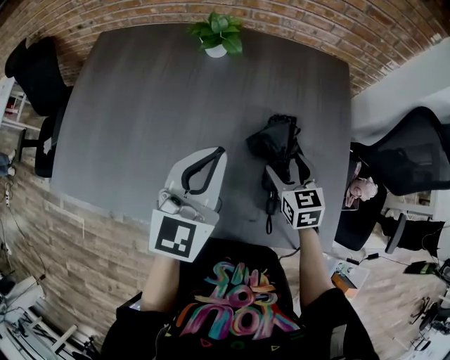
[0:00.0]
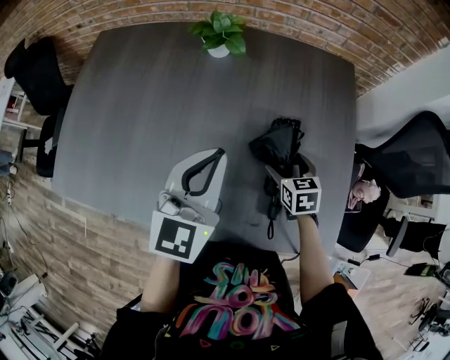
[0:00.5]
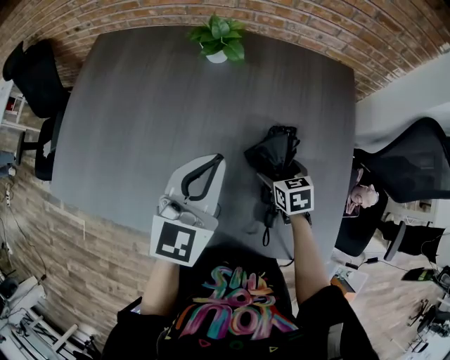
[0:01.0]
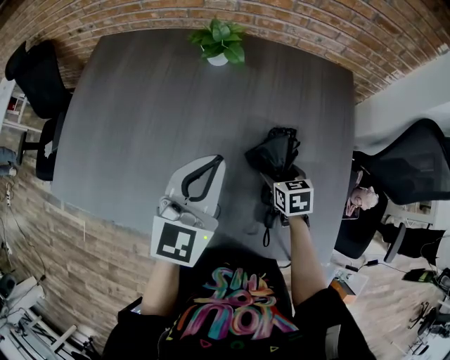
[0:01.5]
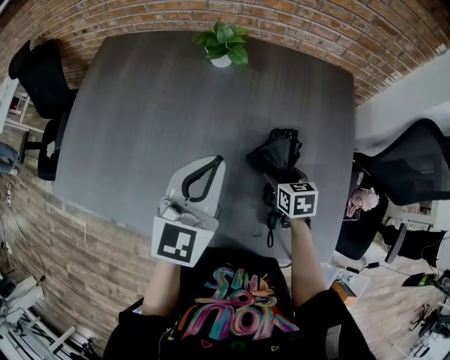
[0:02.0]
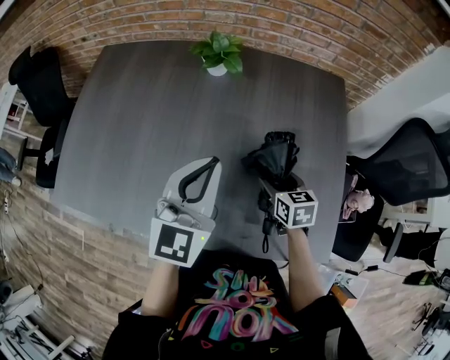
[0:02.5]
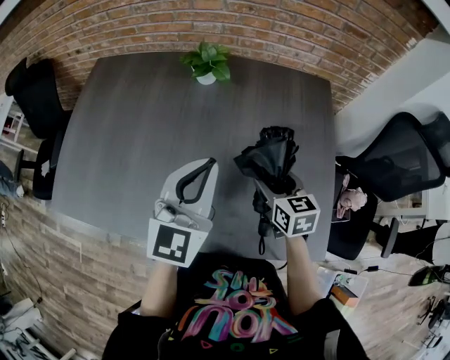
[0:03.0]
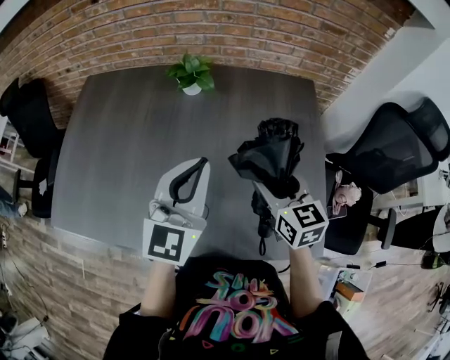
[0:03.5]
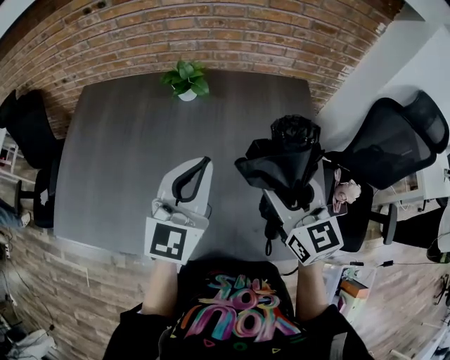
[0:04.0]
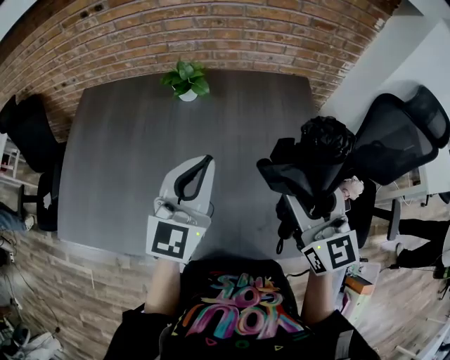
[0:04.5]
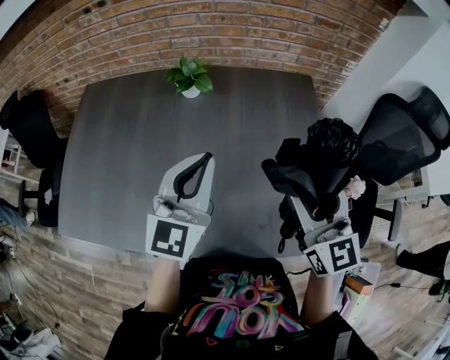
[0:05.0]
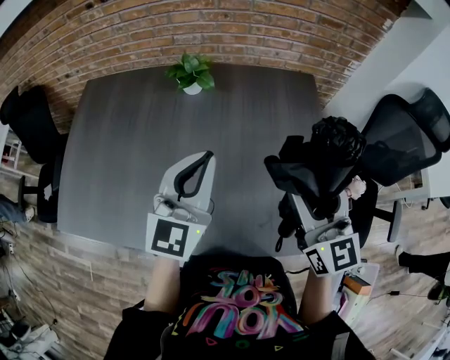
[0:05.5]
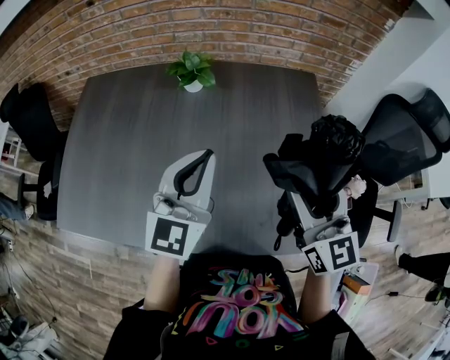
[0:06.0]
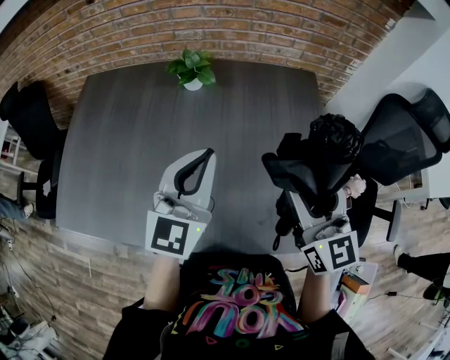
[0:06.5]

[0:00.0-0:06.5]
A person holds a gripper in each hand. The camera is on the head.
0:00.0 to 0:02.0: The right gripper goes some 5 cm downward.
0:02.0 to 0:04.5: The left gripper is displaced upward by roughly 5 cm. Meanwhile the right gripper heads upward, covering some 30 cm, and tilts its fingers roughly 50 degrees upward.
0:04.5 to 0:06.5: Both grippers stay put.

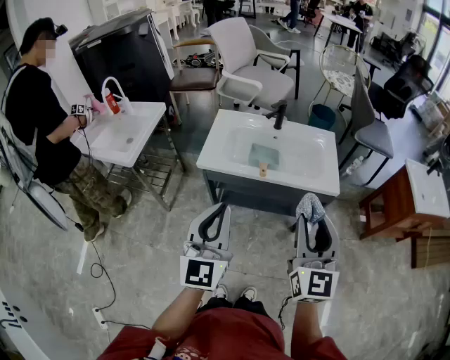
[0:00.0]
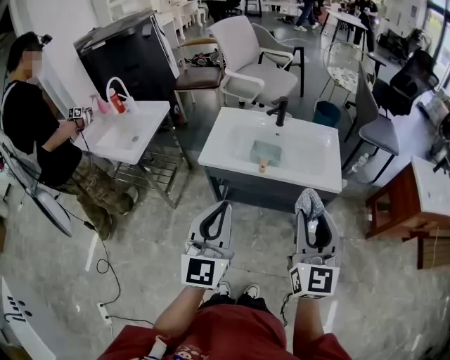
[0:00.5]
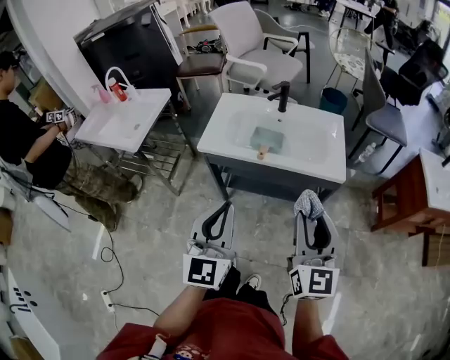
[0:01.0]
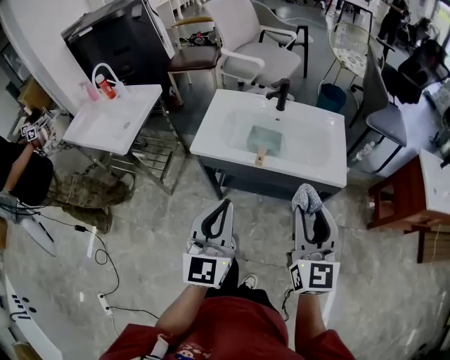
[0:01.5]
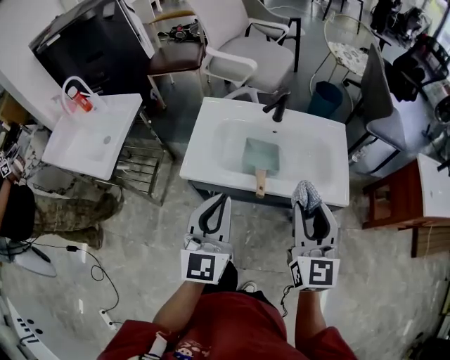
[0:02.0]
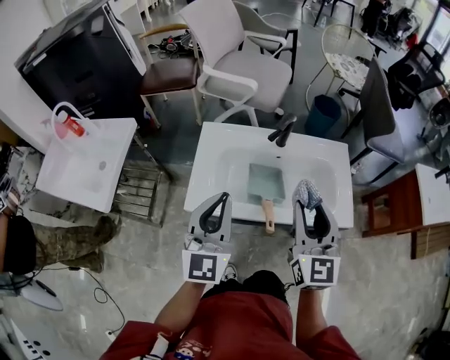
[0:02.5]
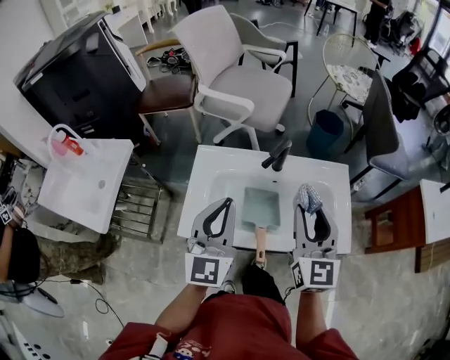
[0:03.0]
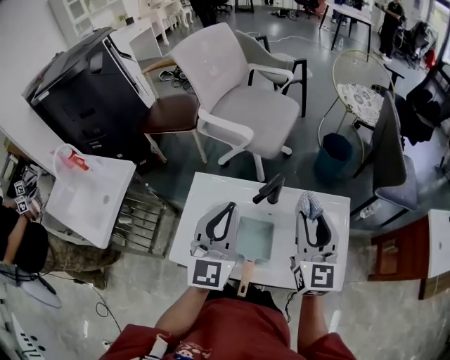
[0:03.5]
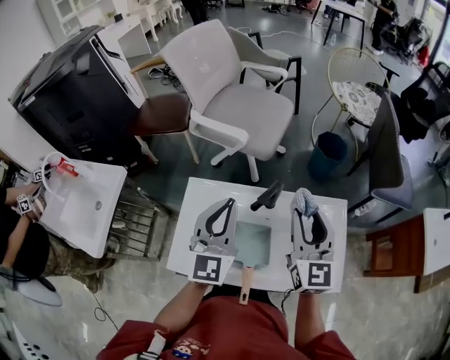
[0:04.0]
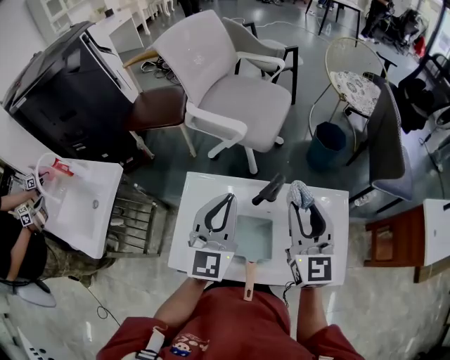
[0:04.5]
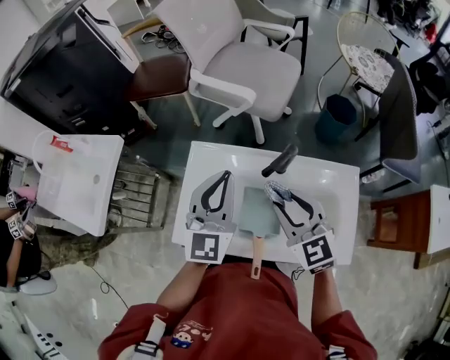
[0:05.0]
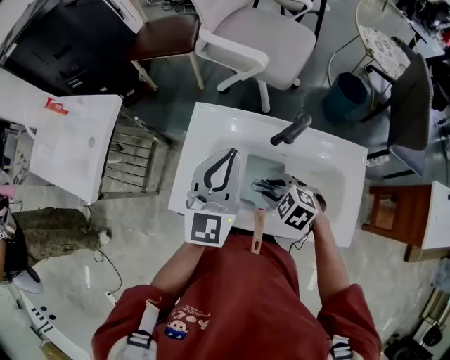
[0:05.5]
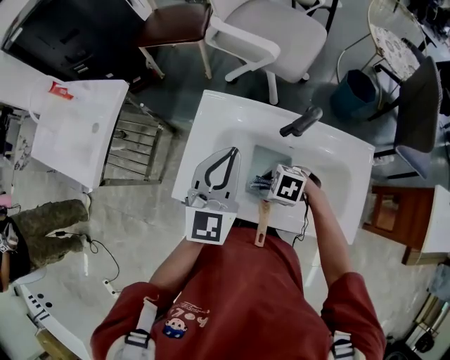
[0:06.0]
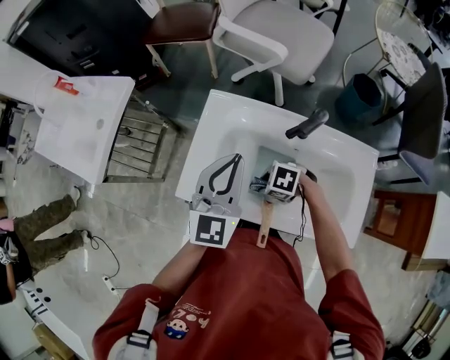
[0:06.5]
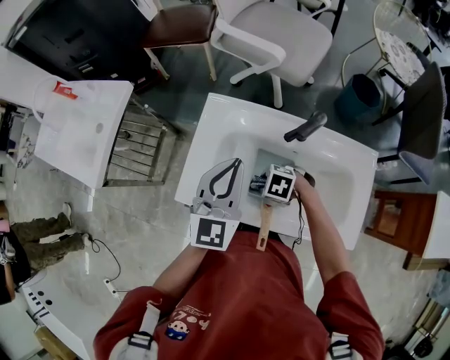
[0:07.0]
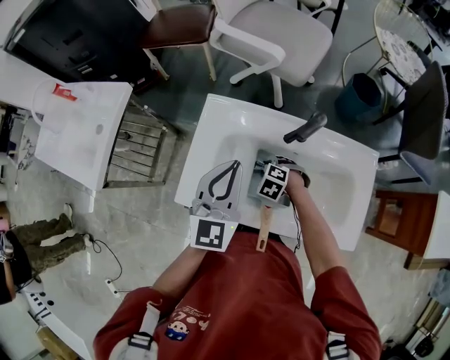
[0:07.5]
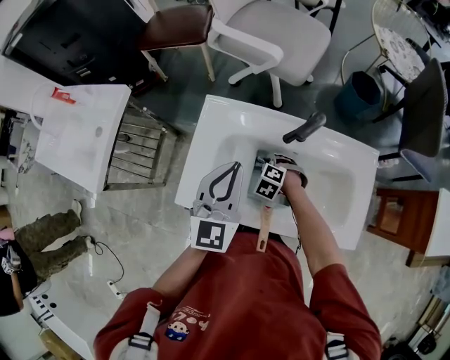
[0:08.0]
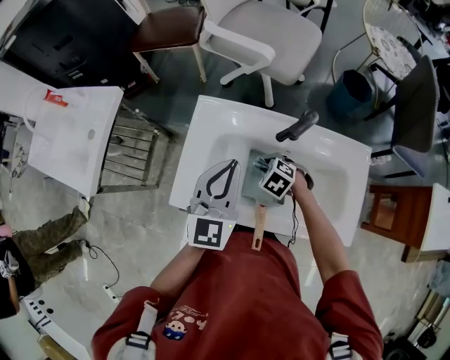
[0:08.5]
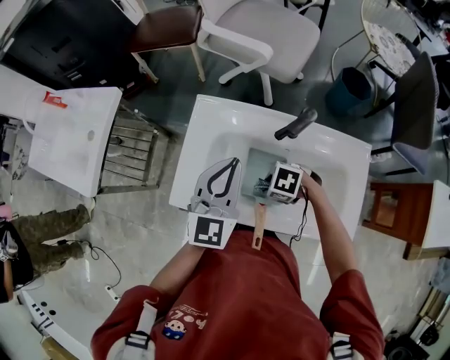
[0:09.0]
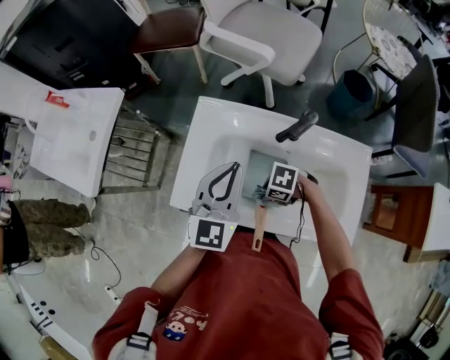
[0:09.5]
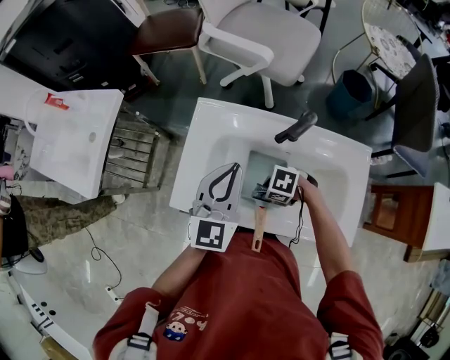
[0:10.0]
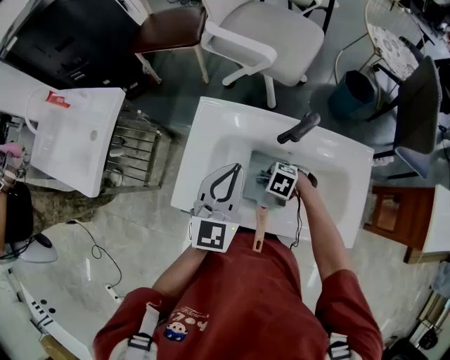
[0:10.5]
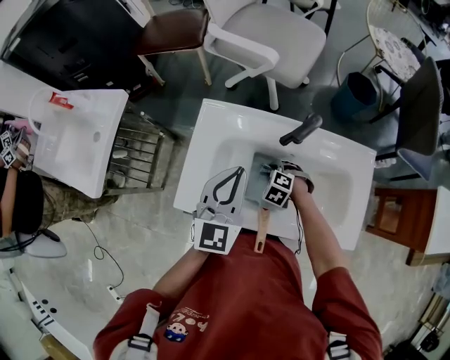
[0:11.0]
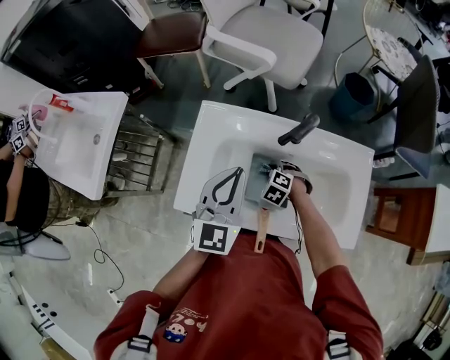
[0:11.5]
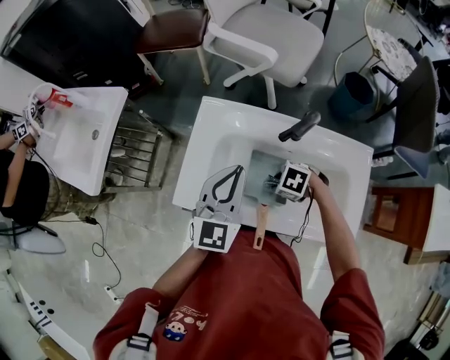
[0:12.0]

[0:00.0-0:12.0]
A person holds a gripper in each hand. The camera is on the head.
0:00.0 to 0:02.0: The two grippers go approximately 20 cm forward.
0:02.0 to 0:04.0: The two grippers go about 35 cm forward.
0:04.0 to 0:06.0: The right gripper moves downward, some 30 cm, and tips its fingers downward by some 70 degrees; the left gripper is displaced downward by some 10 cm.
0:06.0 to 0:08.0: The right gripper goes some 10 cm downward, and swivels approximately 30 degrees.
0:08.0 to 0:10.0: The right gripper ends up about 10 cm from where it was, and changes its angle by roughly 40 degrees.

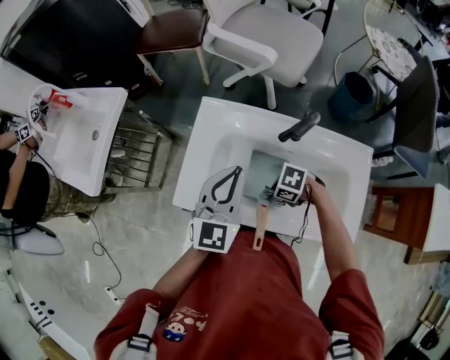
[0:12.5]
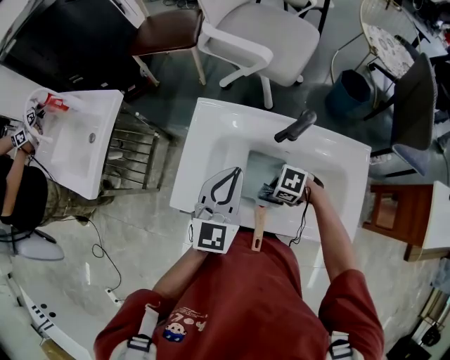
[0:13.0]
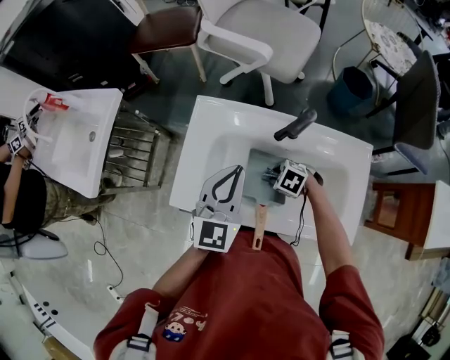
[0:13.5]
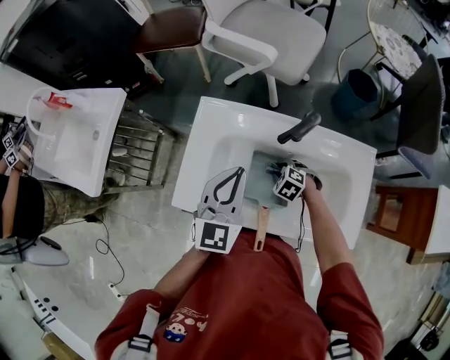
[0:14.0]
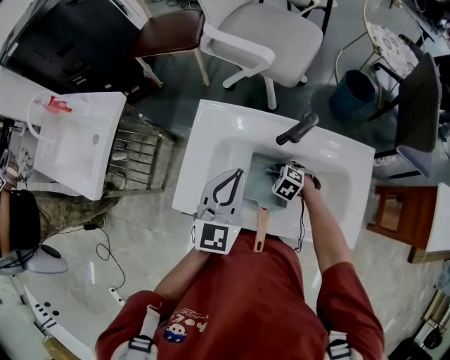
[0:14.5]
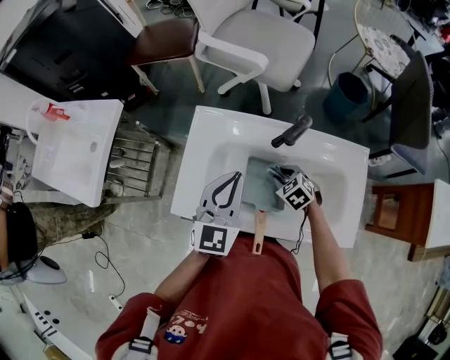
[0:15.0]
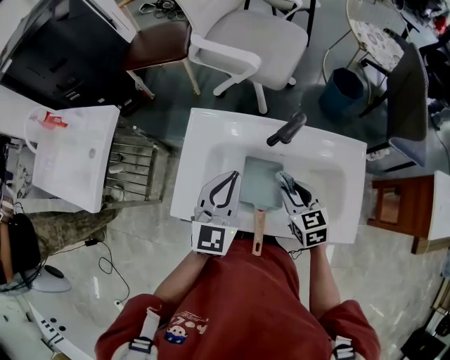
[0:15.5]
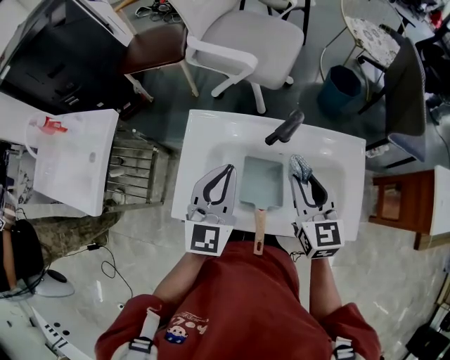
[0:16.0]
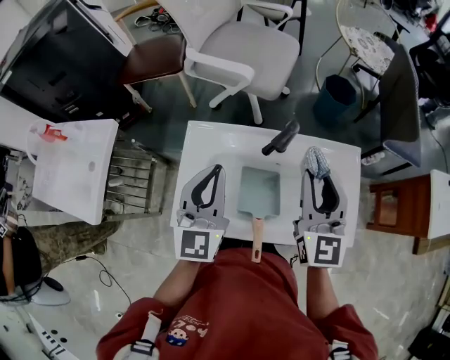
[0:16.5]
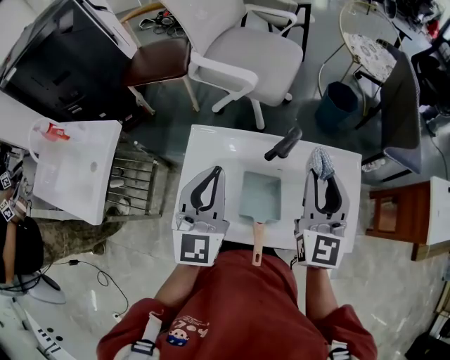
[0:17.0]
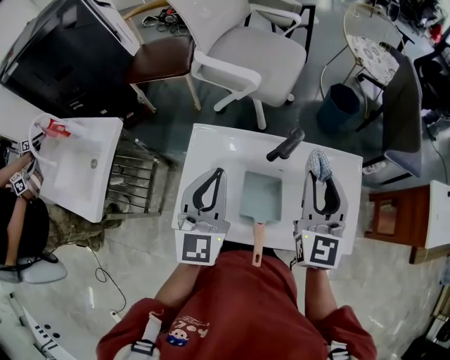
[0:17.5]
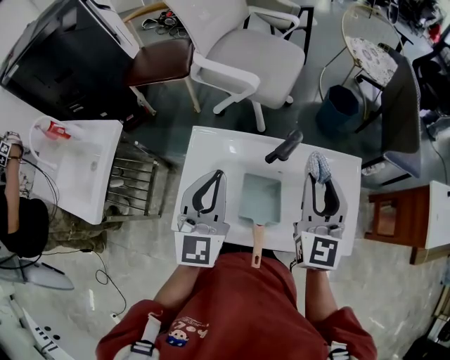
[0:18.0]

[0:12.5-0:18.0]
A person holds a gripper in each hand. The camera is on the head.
0:12.5 to 0:14.5: The right gripper moves approximately 10 cm, and rotates approximately 40 degrees.
0:14.5 to 0:16.0: The right gripper moves upward, roughly 30 cm, and tilts its fingers roughly 50 degrees upward.
0:16.0 to 0:18.0: The left gripper moves about 5 cm. Meanwhile the right gripper heads upward, covering about 10 cm, and turns by approximately 20 degrees.

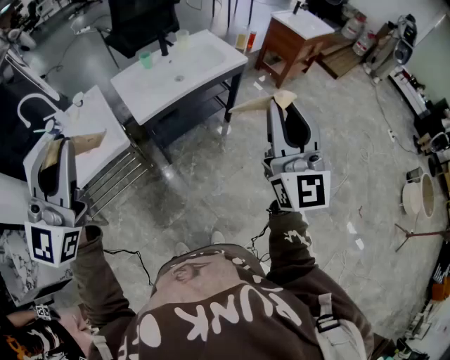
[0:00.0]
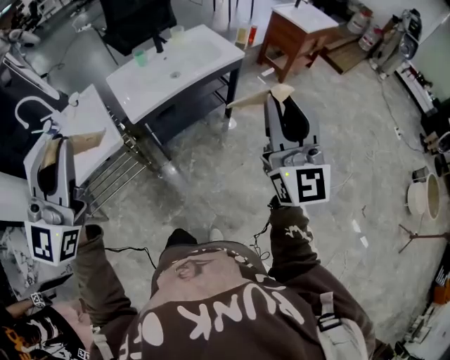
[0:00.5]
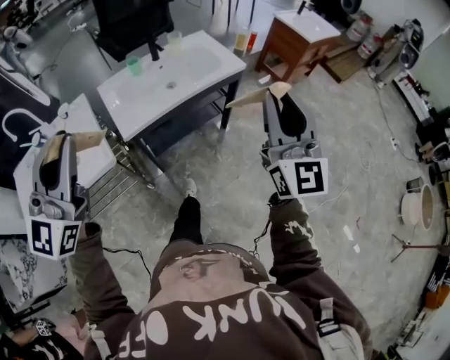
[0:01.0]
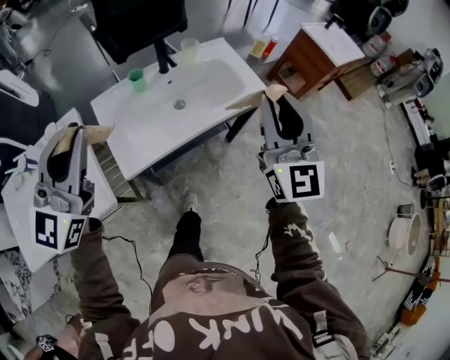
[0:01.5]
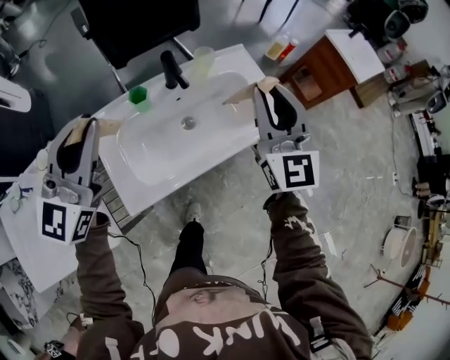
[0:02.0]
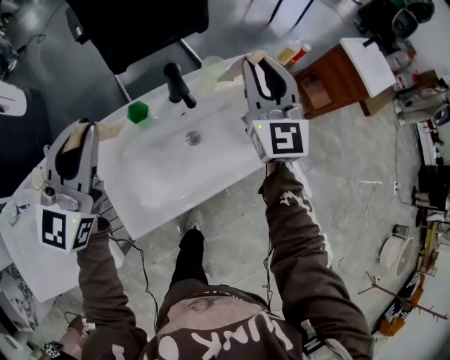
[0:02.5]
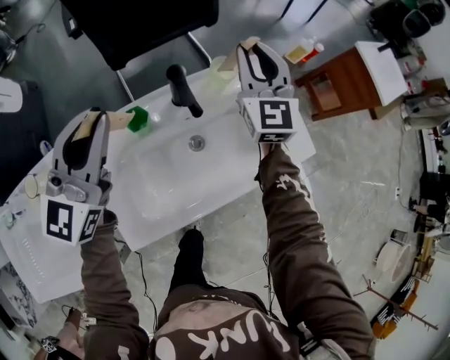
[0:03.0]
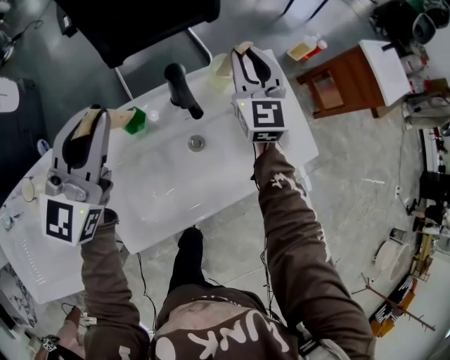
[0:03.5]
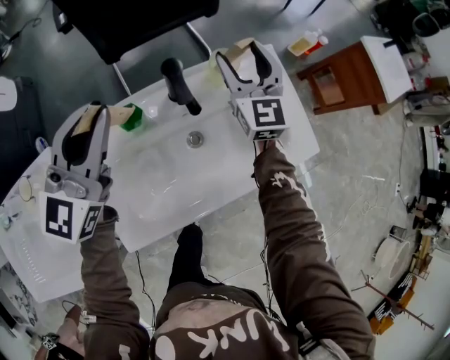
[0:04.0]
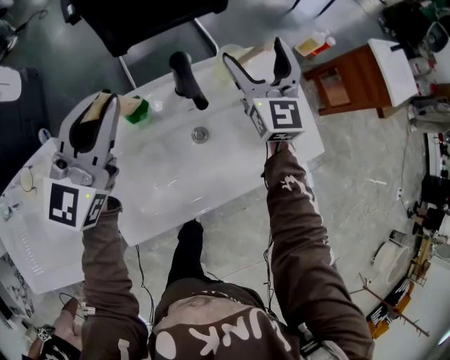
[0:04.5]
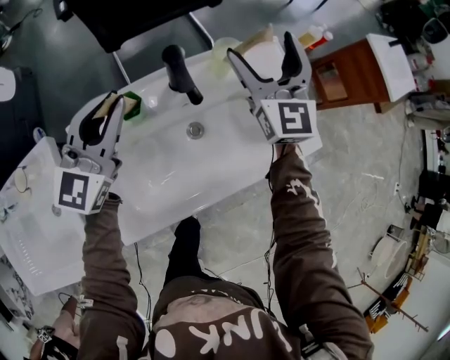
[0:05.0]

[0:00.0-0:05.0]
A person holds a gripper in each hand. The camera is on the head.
0:00.0 to 0:02.5: Both grippers are carried forward, roughly 70 cm.
0:02.5 to 0:05.0: The two grippers go roughly 15 cm downward and forward. The right gripper opens.
